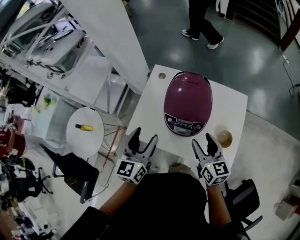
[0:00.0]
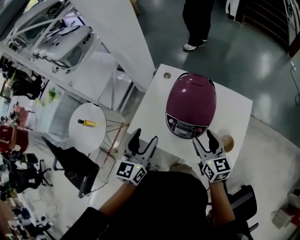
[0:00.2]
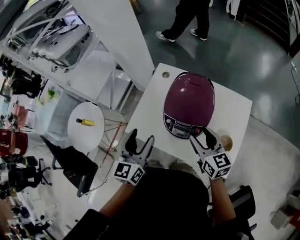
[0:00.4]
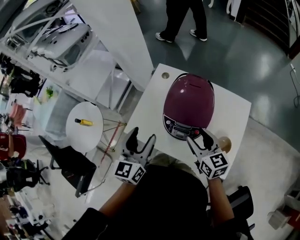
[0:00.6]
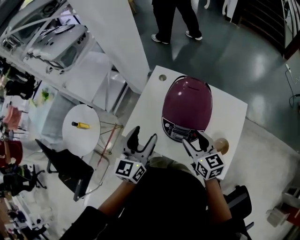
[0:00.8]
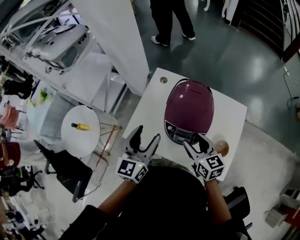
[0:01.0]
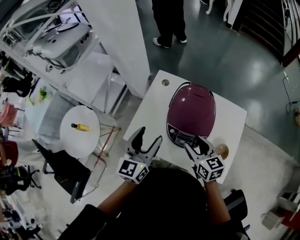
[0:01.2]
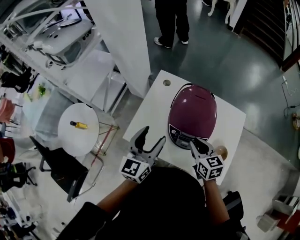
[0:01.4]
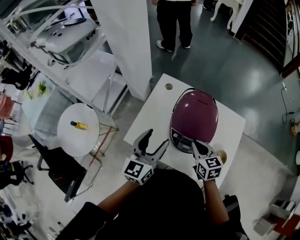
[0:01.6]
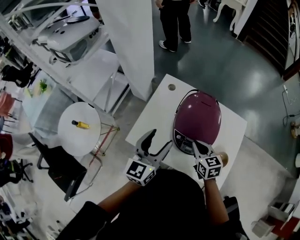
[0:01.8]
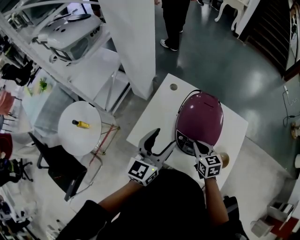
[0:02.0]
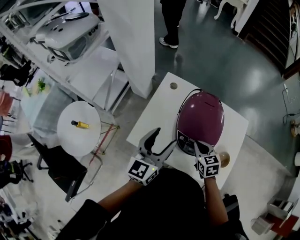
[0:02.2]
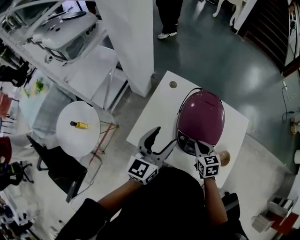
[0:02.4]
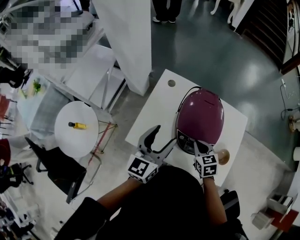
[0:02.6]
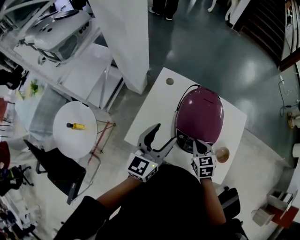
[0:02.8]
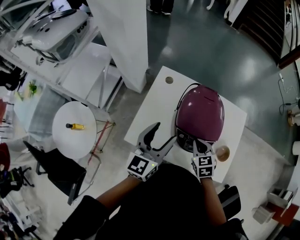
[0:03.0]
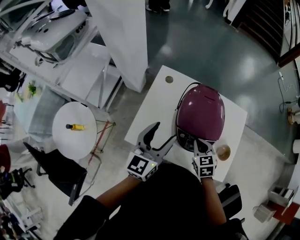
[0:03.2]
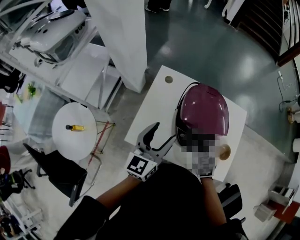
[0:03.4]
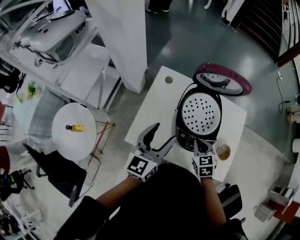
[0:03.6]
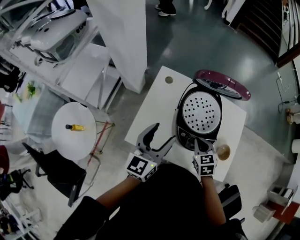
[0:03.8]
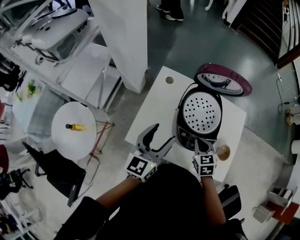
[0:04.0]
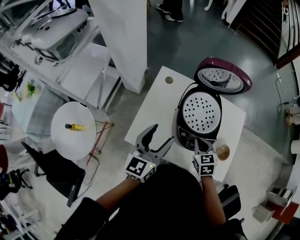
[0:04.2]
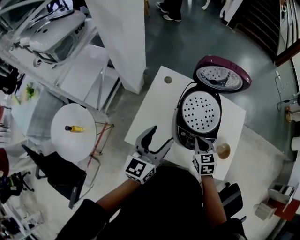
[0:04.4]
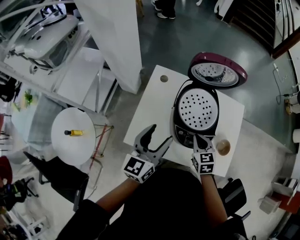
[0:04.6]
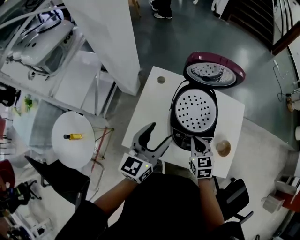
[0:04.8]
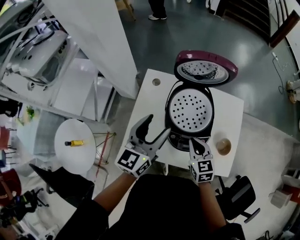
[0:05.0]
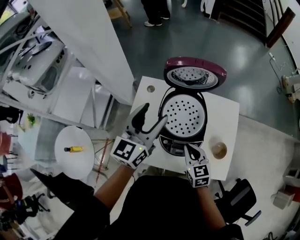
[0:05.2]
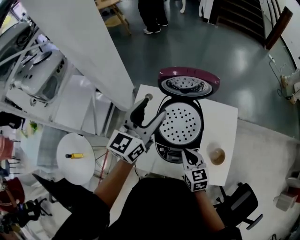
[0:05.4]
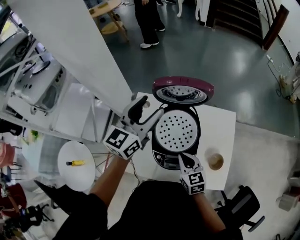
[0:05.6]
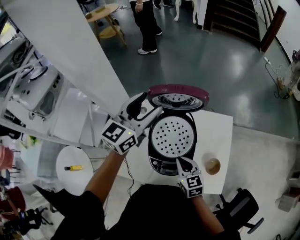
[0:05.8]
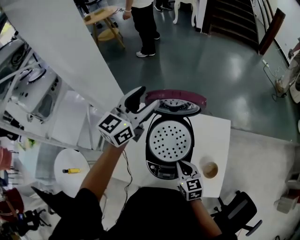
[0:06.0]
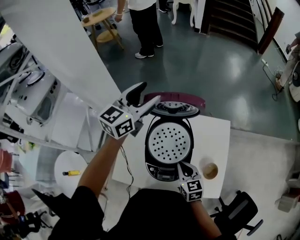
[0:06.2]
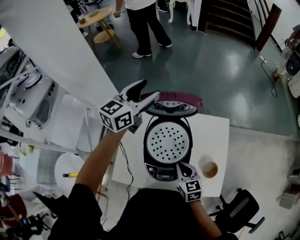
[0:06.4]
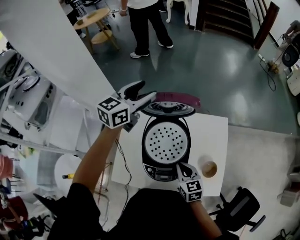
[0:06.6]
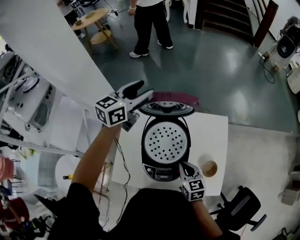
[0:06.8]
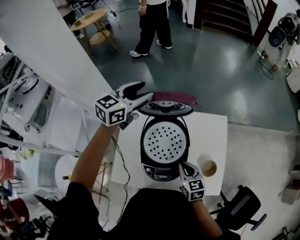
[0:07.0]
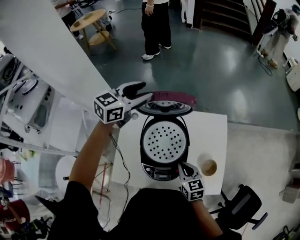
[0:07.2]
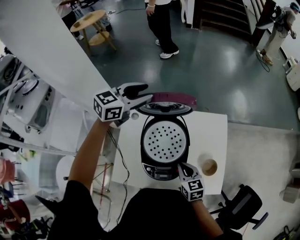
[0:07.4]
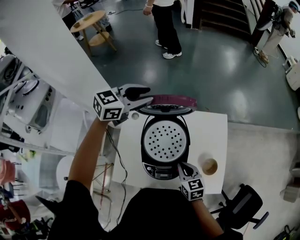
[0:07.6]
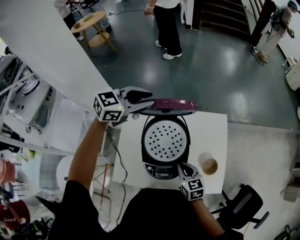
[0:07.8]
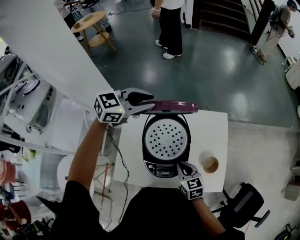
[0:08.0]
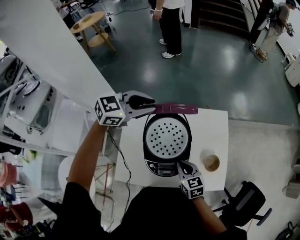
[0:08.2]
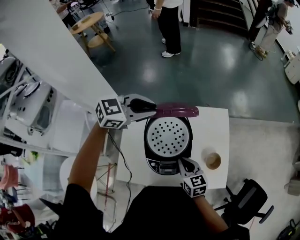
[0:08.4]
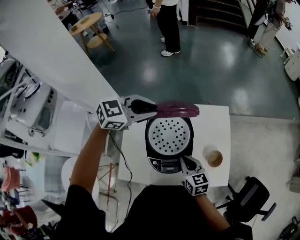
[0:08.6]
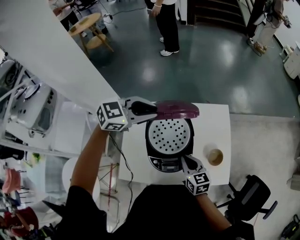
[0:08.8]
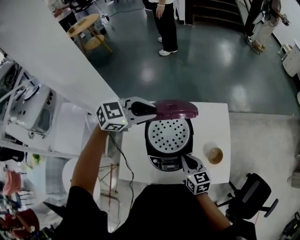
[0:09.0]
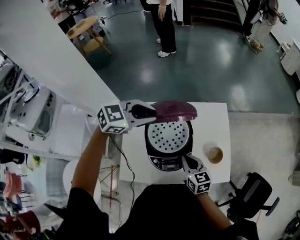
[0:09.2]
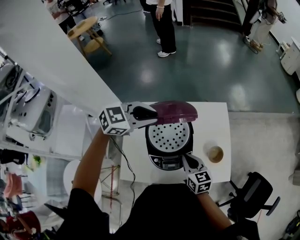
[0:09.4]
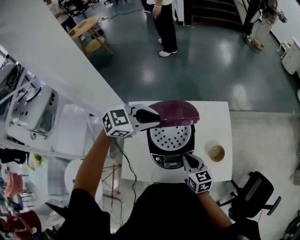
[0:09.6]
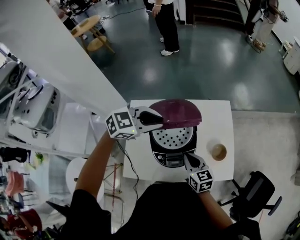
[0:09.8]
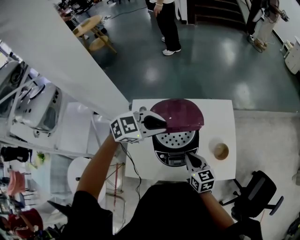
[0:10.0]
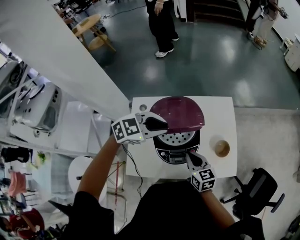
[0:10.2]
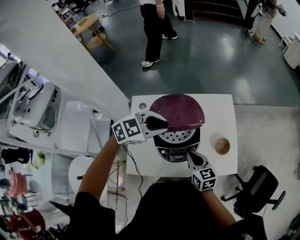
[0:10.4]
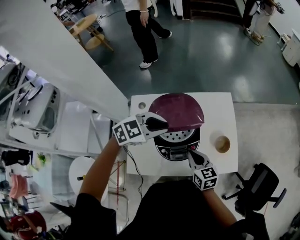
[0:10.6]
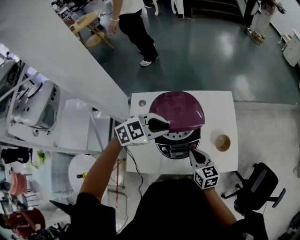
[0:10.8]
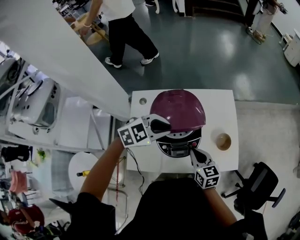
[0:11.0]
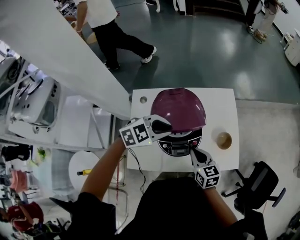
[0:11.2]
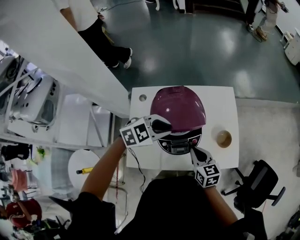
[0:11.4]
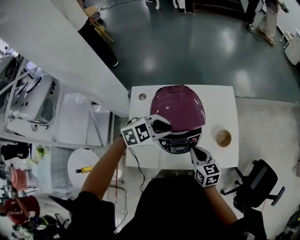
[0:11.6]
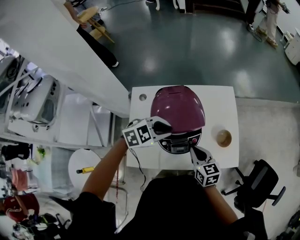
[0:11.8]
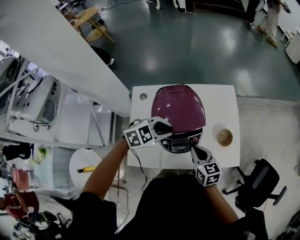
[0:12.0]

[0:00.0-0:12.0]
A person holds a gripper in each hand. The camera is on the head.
0:00.0 to 0:01.6: The left gripper is displaced forward by roughly 5 cm, while the right gripper heads forward and downward, covering roughly 10 cm, turns by some 20 degrees, and closes up.
0:01.6 to 0:03.0: The right gripper shifts approximately 5 cm downward, and changes its angle by about 20 degrees.
0:03.0 to 0:04.4: The grippers stay close to where they were, moving slightly.
0:04.4 to 0:06.0: The left gripper is displaced forward and upward by about 30 cm, and swivels about 20 degrees; the right gripper shifts some 5 cm to the right.
0:06.0 to 0:07.6: The left gripper shifts by some 5 cm, rotates approximately 40 degrees, and closes up.
0:07.6 to 0:09.0: The left gripper is displaced backward and to the right by about 10 cm, and changes its angle by approximately 20 degrees.
0:09.0 to 0:10.4: The left gripper is displaced backward and downward by roughly 10 cm.
0:10.4 to 0:12.0: The left gripper heads downward, covering some 10 cm.

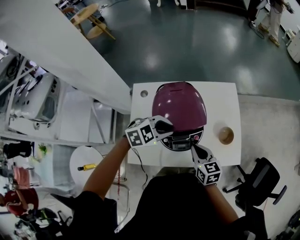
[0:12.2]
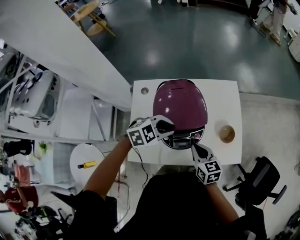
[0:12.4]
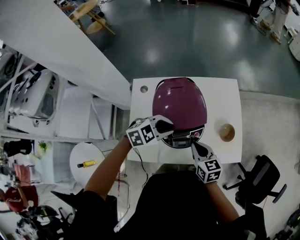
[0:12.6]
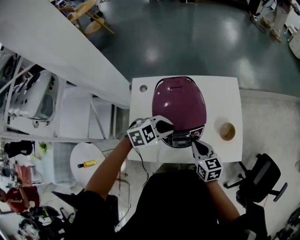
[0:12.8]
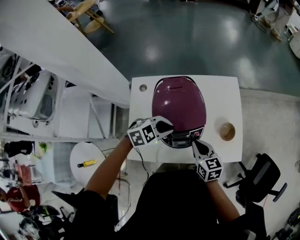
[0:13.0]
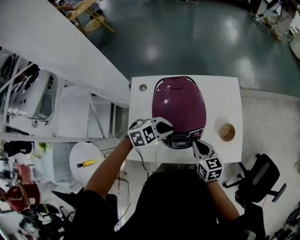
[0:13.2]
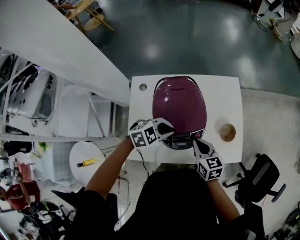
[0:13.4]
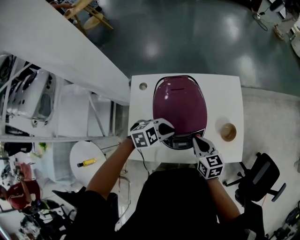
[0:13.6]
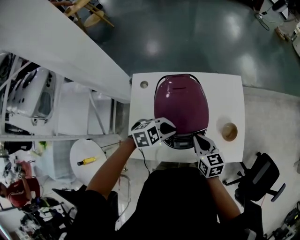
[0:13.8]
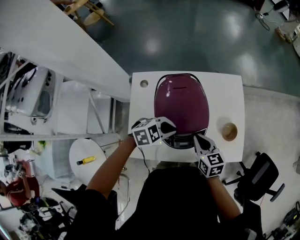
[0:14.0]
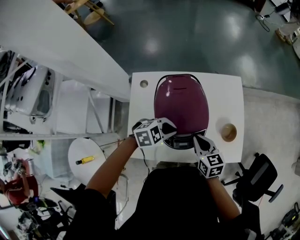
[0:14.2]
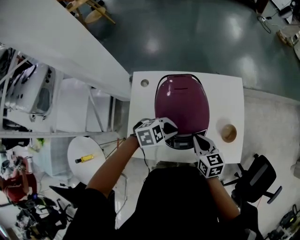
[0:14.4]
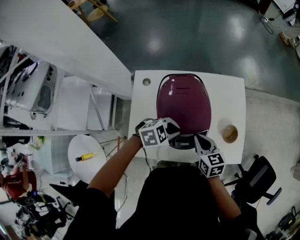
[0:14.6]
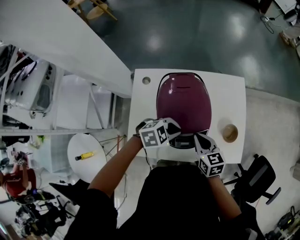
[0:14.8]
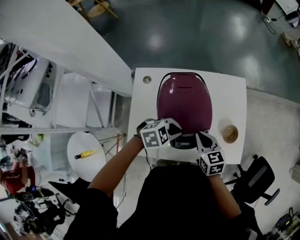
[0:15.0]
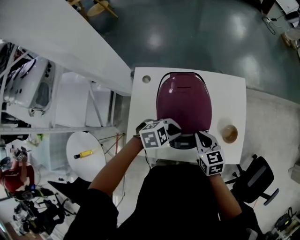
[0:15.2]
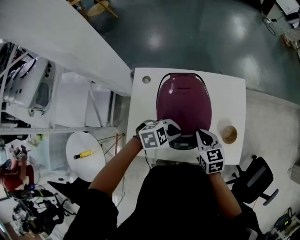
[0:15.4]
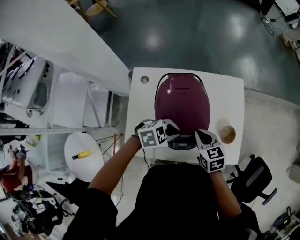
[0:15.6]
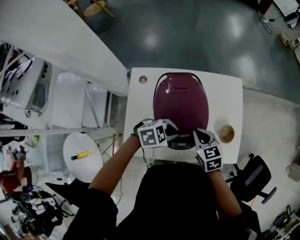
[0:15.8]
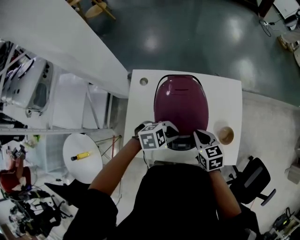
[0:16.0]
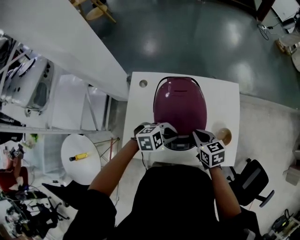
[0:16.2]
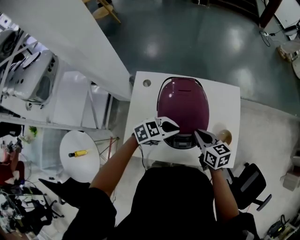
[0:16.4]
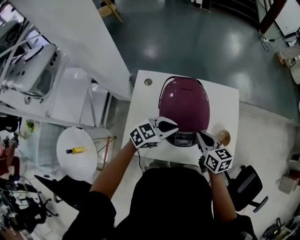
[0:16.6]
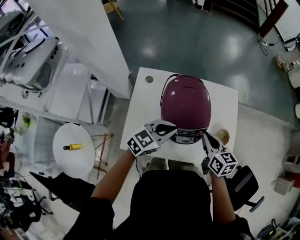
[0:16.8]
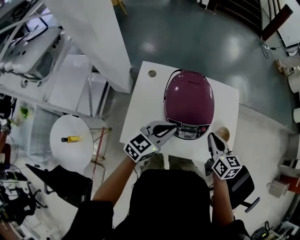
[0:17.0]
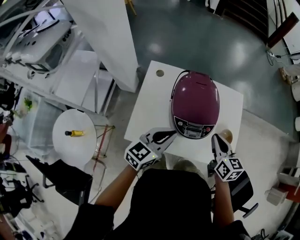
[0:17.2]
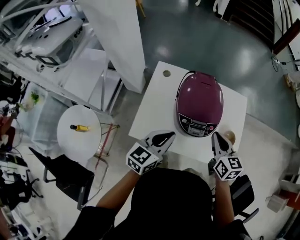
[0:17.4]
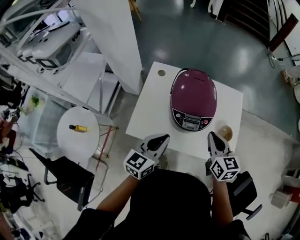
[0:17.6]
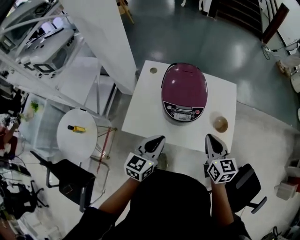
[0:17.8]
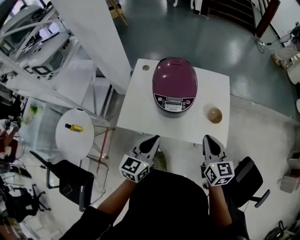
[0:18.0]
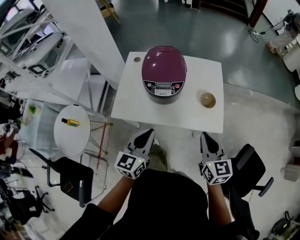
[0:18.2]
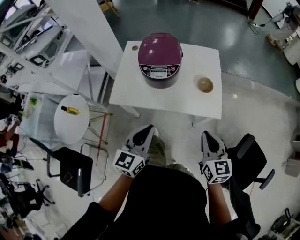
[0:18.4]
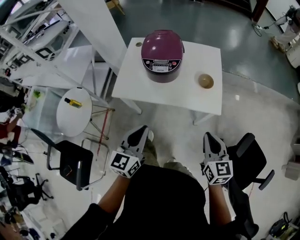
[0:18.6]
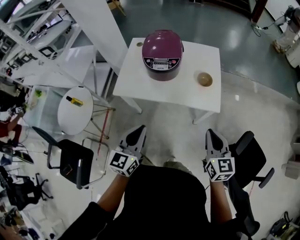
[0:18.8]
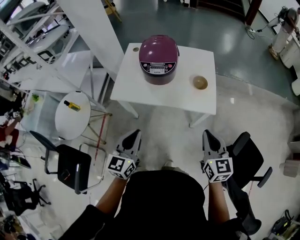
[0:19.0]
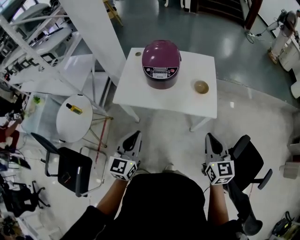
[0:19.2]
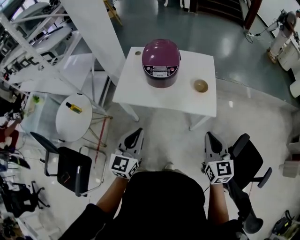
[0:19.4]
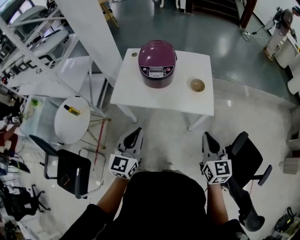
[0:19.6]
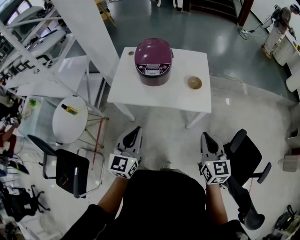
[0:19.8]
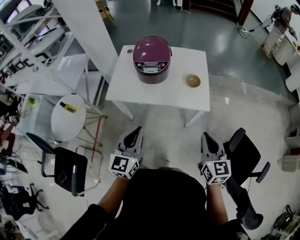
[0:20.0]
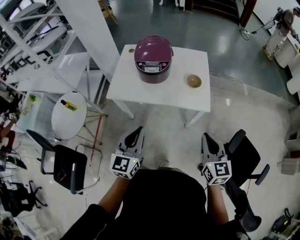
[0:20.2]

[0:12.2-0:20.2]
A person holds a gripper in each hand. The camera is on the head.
0:12.2 to 0:13.8: The left gripper is displaced downward by some 5 cm.
0:13.8 to 0:15.4: The grippers stay close to where they were, moving slightly.
0:15.4 to 0:17.0: Both grippers travel together upward, some 10 cm. The left gripper angles its fingers upward, by roughly 30 degrees.
0:17.0 to 0:18.6: The right gripper moves backward and to the right, roughly 40 cm. The left gripper travels backward by about 35 cm, and rotates about 30 degrees.
0:18.6 to 0:20.2: Both grippers move backward, some 5 cm.

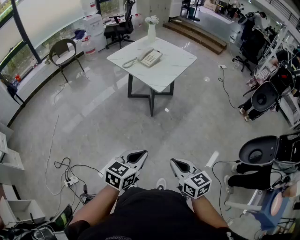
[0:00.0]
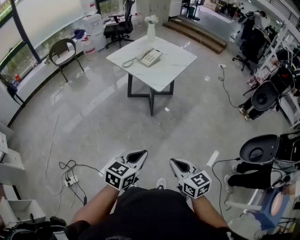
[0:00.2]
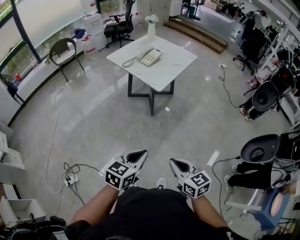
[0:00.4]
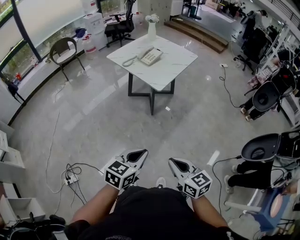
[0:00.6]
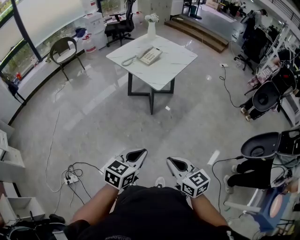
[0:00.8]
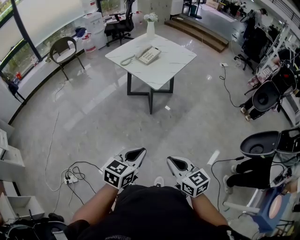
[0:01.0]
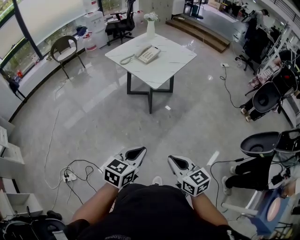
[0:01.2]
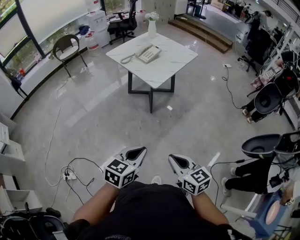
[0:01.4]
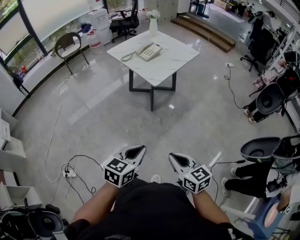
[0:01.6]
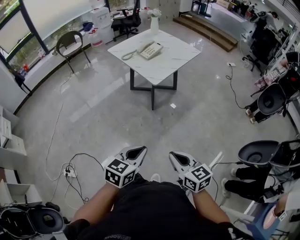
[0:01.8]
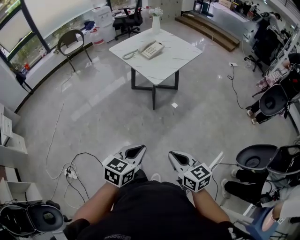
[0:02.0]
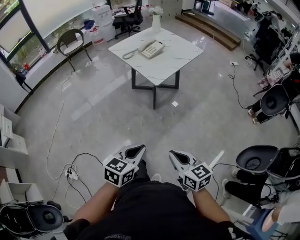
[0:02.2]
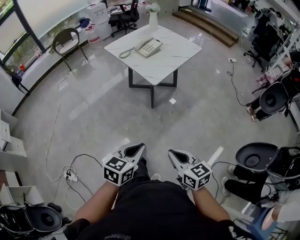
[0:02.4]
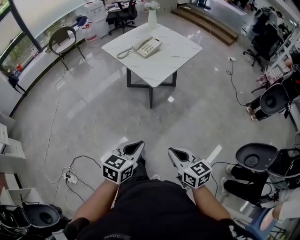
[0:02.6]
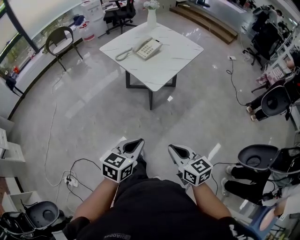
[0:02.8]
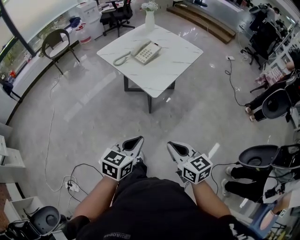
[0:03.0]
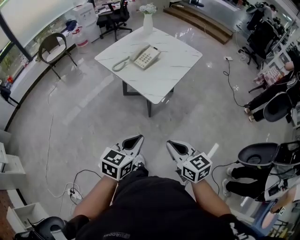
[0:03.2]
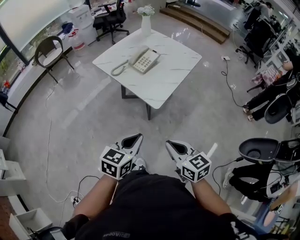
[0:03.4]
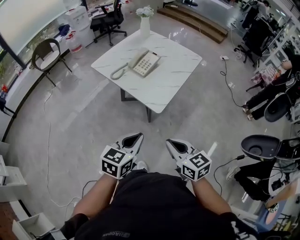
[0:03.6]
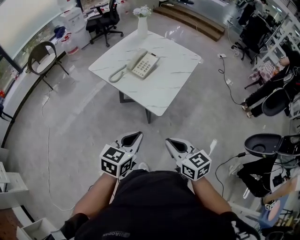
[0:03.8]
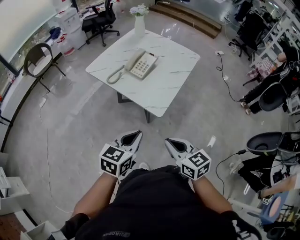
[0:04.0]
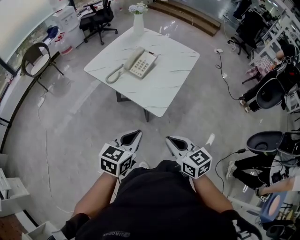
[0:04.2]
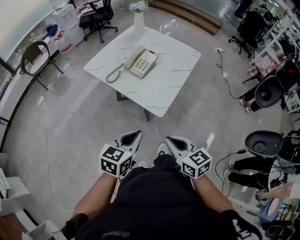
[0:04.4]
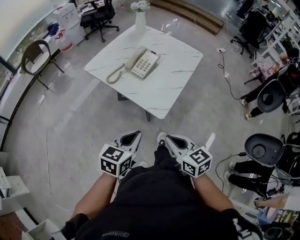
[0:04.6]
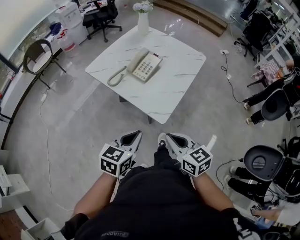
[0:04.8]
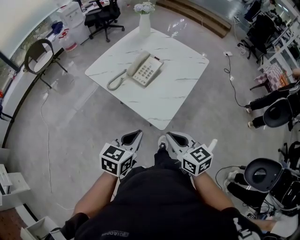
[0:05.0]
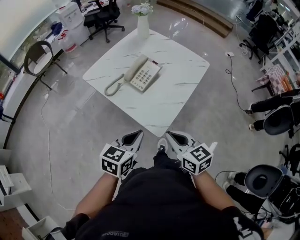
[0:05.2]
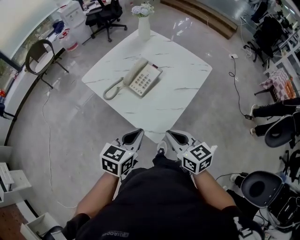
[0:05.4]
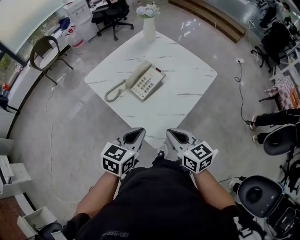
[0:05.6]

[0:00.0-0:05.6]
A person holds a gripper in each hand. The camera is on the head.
0:00.0 to 0:01.4: Both grippers move to the right, approximately 5 cm.
0:01.4 to 0:02.8: Both grippers travel together forward, some 15 cm.
0:02.8 to 0:04.2: The left gripper is displaced forward by approximately 25 cm; the right gripper goes approximately 25 cm forward and to the left.
0:04.2 to 0:05.6: Both grippers travel together forward, about 20 cm.
